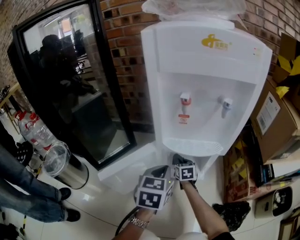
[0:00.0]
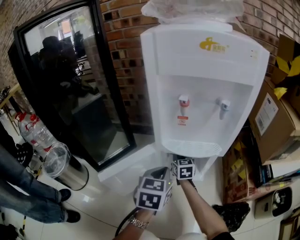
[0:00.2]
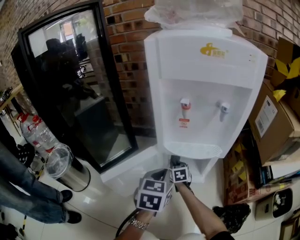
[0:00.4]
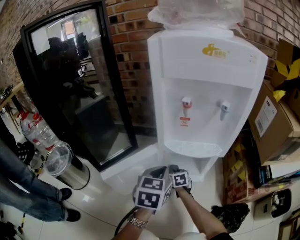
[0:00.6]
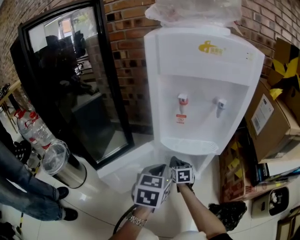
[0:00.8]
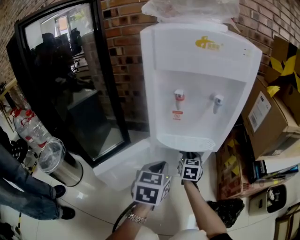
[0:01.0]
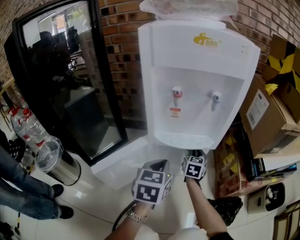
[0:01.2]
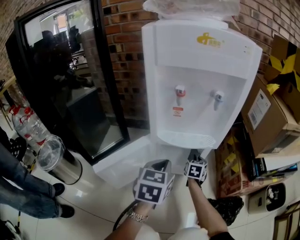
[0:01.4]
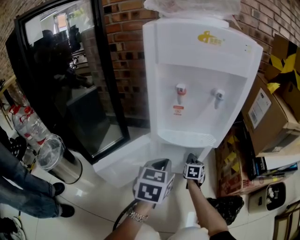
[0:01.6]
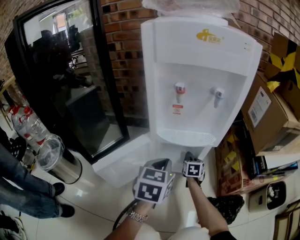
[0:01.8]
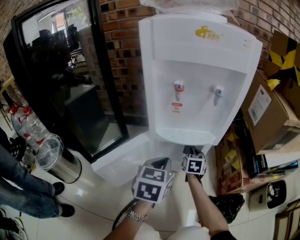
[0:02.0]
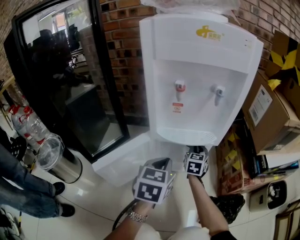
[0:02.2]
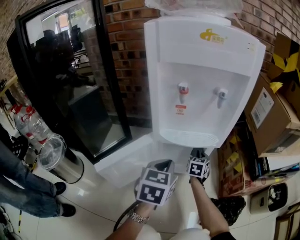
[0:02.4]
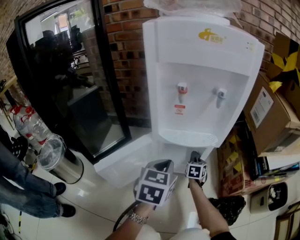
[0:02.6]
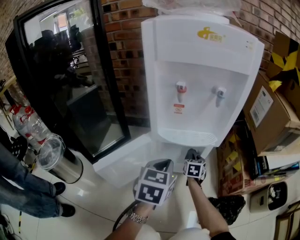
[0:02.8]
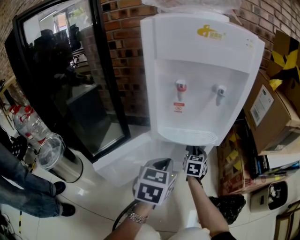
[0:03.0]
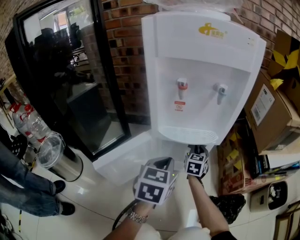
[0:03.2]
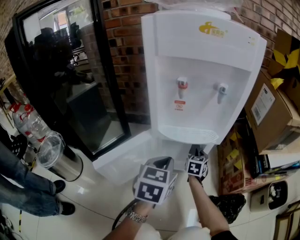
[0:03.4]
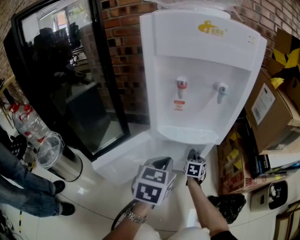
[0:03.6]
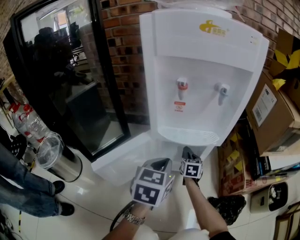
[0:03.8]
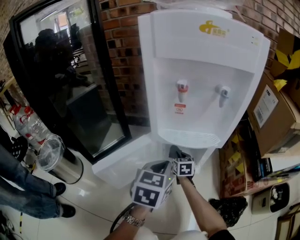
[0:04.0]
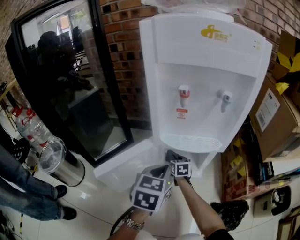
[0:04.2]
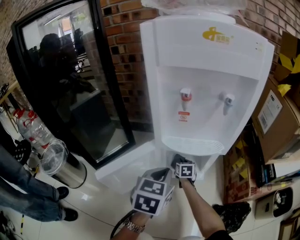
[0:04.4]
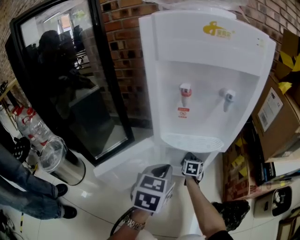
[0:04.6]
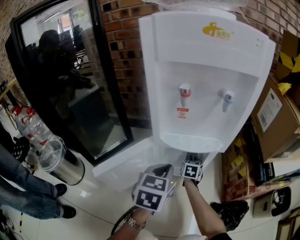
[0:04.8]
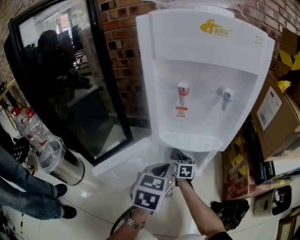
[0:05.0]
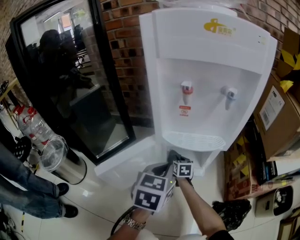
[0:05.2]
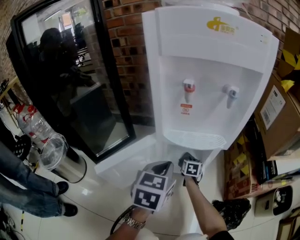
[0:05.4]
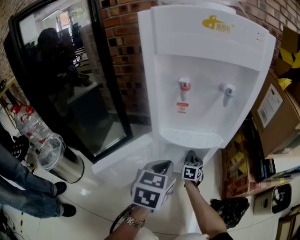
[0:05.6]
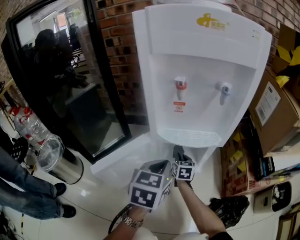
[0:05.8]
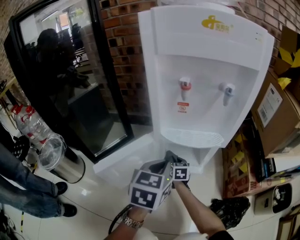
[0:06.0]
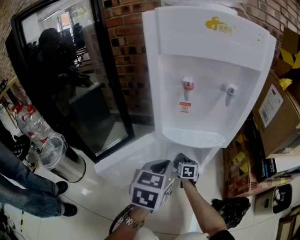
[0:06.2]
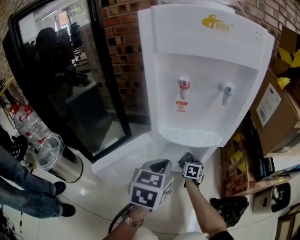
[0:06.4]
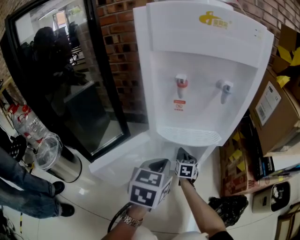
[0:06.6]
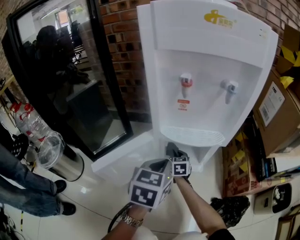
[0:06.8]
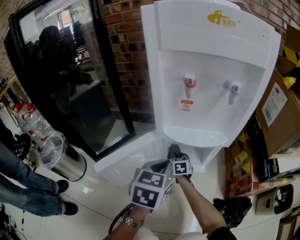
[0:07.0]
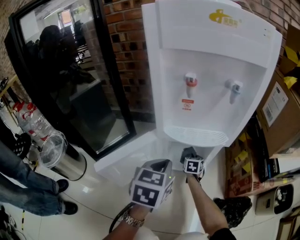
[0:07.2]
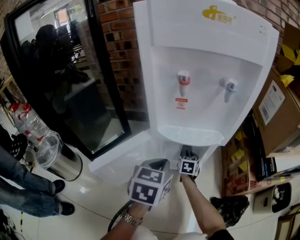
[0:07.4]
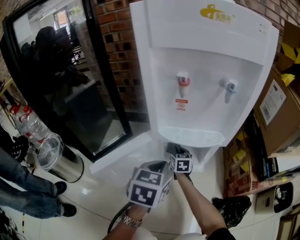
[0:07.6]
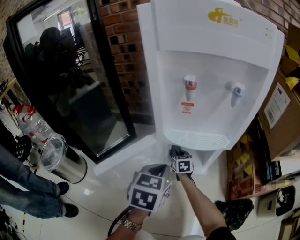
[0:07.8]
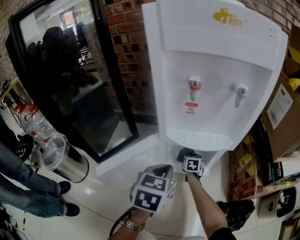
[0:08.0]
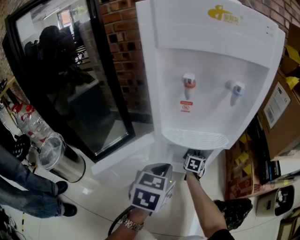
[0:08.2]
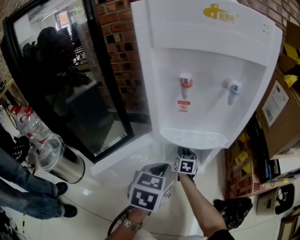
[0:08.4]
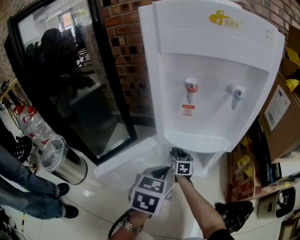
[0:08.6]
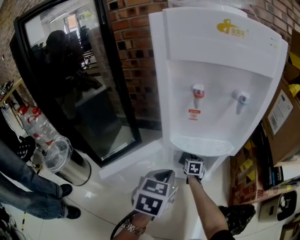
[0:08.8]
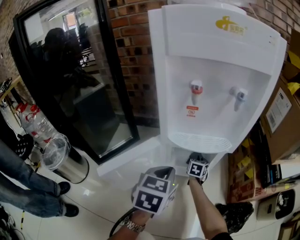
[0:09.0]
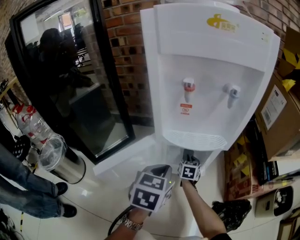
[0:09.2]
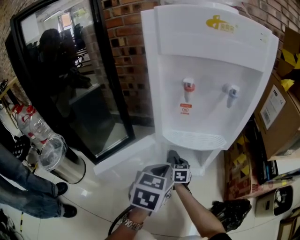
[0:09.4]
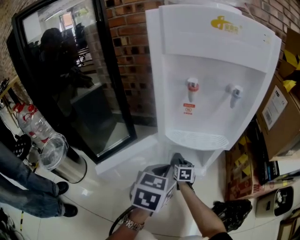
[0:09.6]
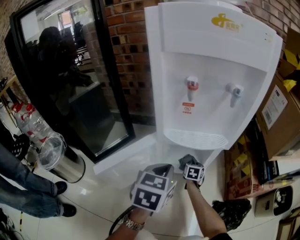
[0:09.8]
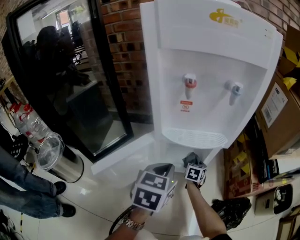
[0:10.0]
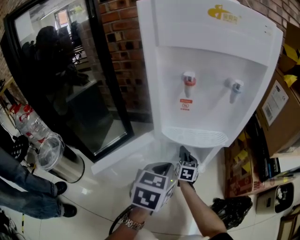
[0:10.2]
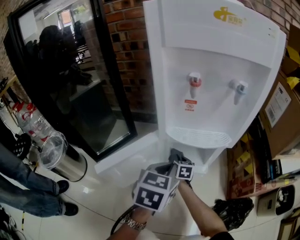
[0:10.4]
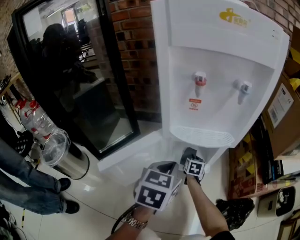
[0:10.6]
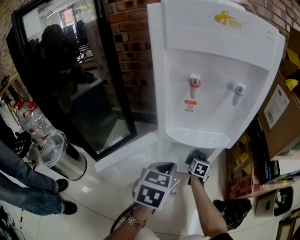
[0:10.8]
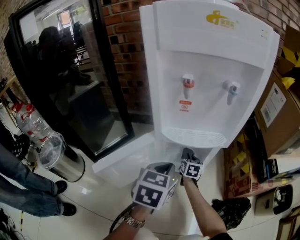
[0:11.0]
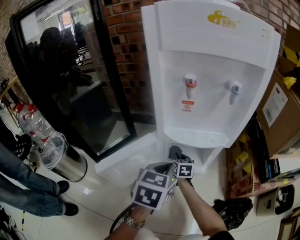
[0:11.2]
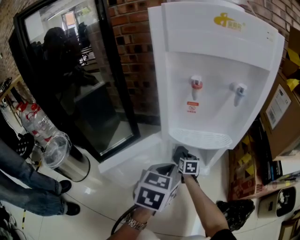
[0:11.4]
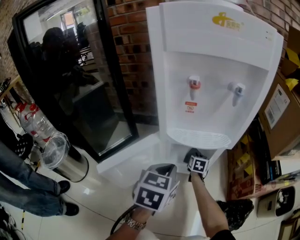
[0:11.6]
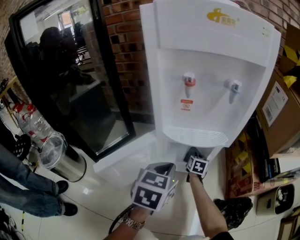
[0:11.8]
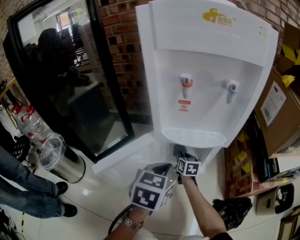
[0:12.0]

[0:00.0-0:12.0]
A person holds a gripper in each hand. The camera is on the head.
0:00.0 to 0:01.6: The right gripper shifts about 10 cm to the right, and changes its angle by approximately 20 degrees.
0:01.6 to 0:03.0: The right gripper swings up and down, some 10 cm each way, with 2 reversals.
0:03.0 to 0:04.4: The right gripper moves downward and to the left, roughly 15 cm, and changes its angle by approximately 20 degrees.
0:04.4 to 0:06.0: The right gripper goes left and right, some 10 cm each way, reversing 3 times.
0:06.0 to 0:07.6: The right gripper swings left and right, approximately 15 cm each way, with 3 reversals.
0:07.6 to 0:09.0: The right gripper goes left and right, approximately 15 cm each way, reversing 2 times, and rotates approximately 20 degrees.
0:09.0 to 0:10.4: The right gripper goes left and right, some 15 cm each way, reversing 2 times, and changes its angle by some 20 degrees.
0:10.4 to 0:12.0: The right gripper swings left and right, approximately 15 cm each way, with 3 reversals.

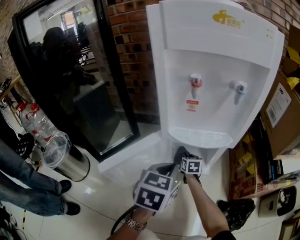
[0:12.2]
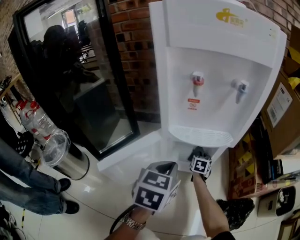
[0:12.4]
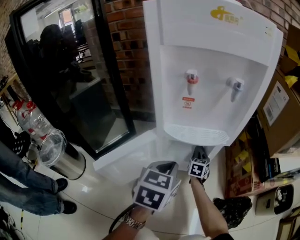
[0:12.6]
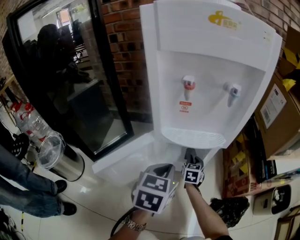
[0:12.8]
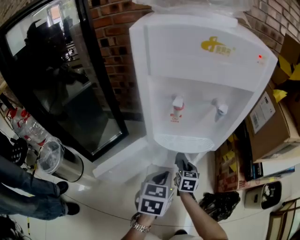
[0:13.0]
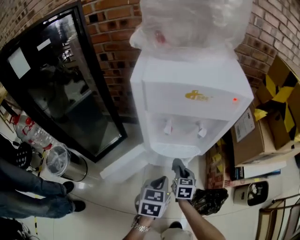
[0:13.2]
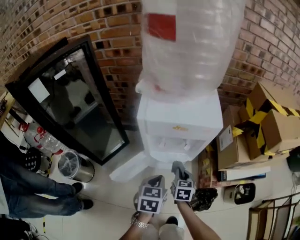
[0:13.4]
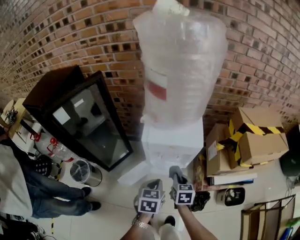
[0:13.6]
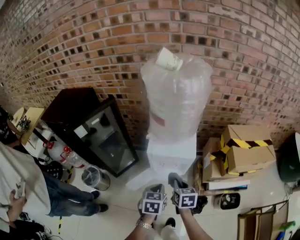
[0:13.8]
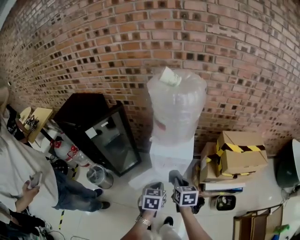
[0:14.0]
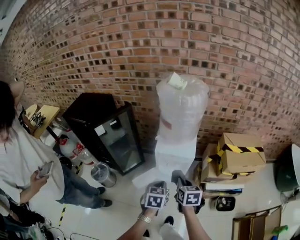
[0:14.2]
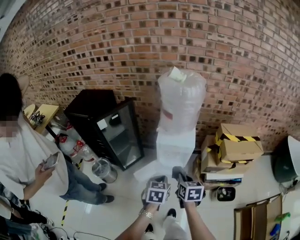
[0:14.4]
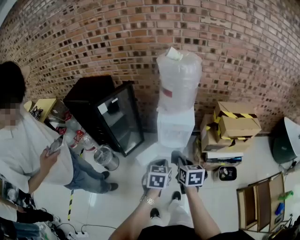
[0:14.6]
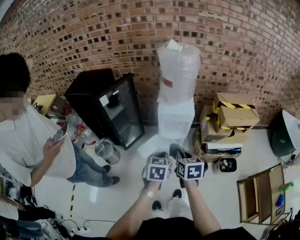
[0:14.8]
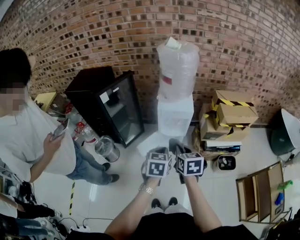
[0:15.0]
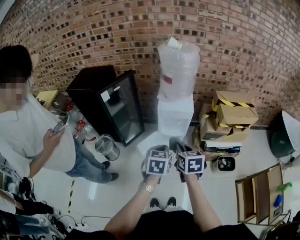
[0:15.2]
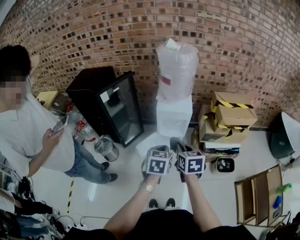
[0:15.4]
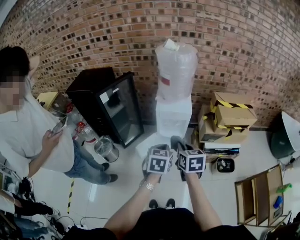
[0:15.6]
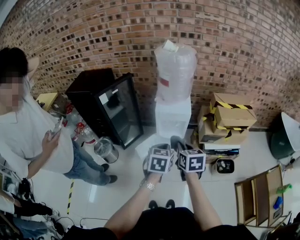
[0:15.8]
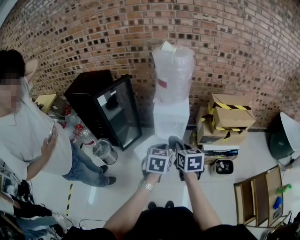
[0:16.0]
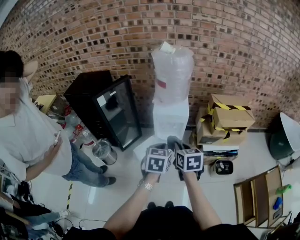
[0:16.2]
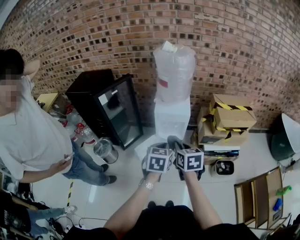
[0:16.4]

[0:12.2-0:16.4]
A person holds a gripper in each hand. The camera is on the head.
0:12.2 to 0:13.6: The right gripper is displaced upward by about 60 cm, while the left gripper heads upward, covering about 35 cm.
0:13.6 to 0:15.0: Both grippers move upward and backward, about 40 cm.
0:15.0 to 0:16.4: The left gripper ends up roughly 5 cm from where it was.

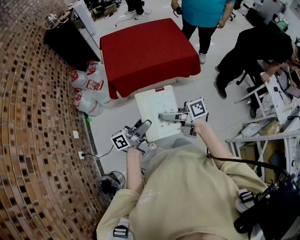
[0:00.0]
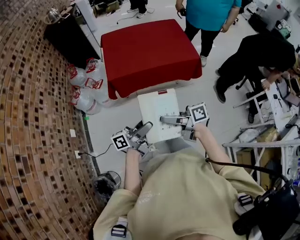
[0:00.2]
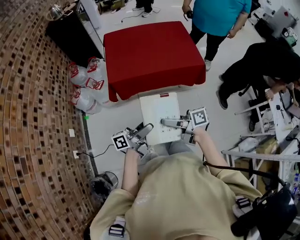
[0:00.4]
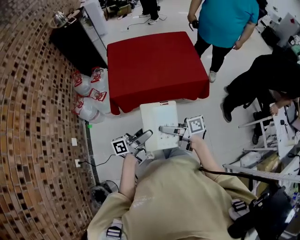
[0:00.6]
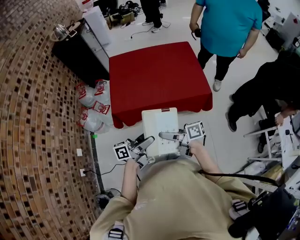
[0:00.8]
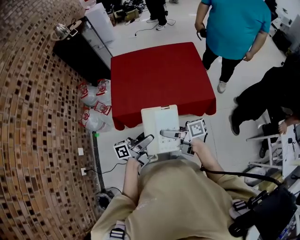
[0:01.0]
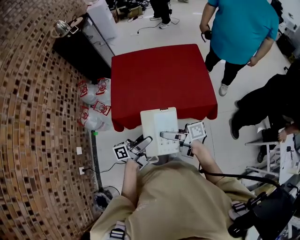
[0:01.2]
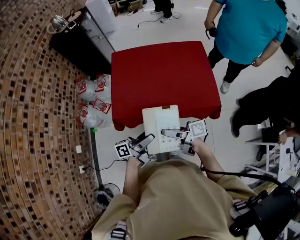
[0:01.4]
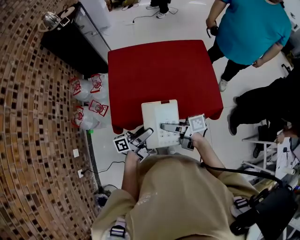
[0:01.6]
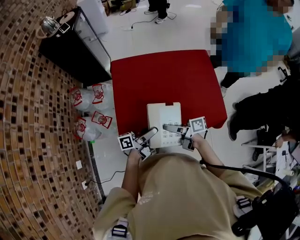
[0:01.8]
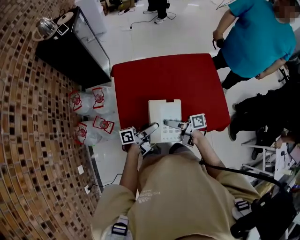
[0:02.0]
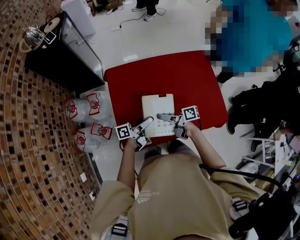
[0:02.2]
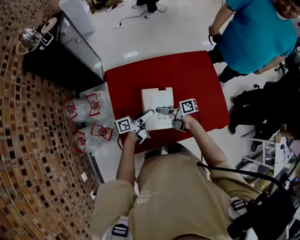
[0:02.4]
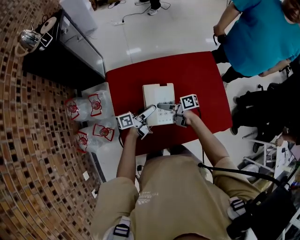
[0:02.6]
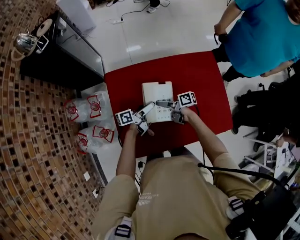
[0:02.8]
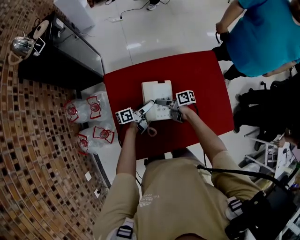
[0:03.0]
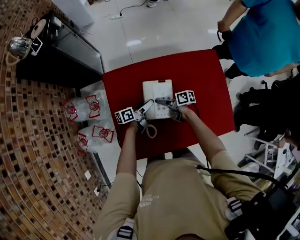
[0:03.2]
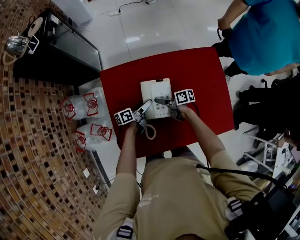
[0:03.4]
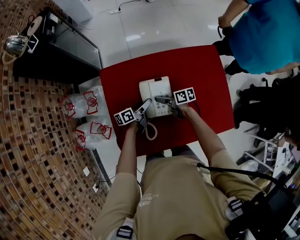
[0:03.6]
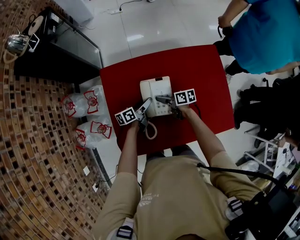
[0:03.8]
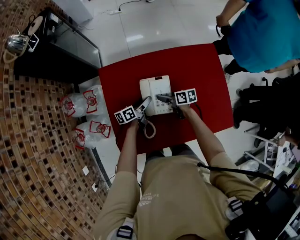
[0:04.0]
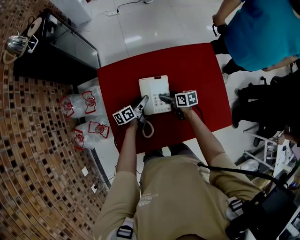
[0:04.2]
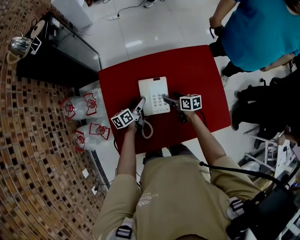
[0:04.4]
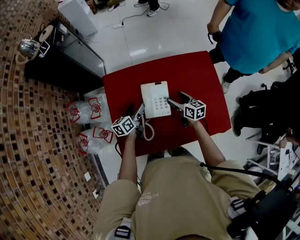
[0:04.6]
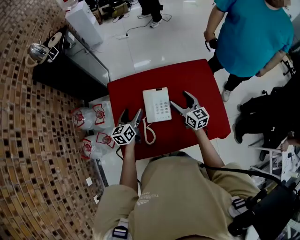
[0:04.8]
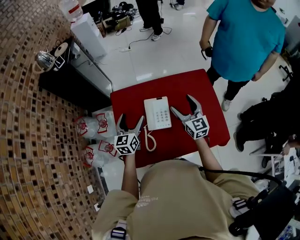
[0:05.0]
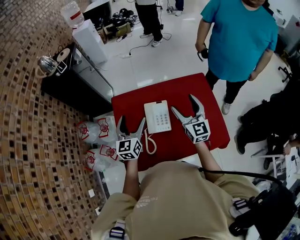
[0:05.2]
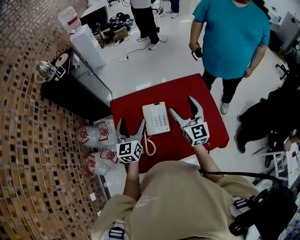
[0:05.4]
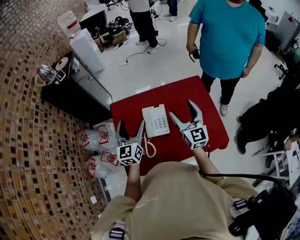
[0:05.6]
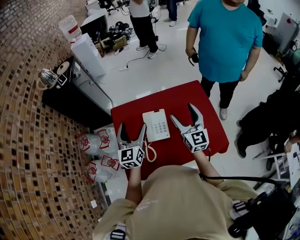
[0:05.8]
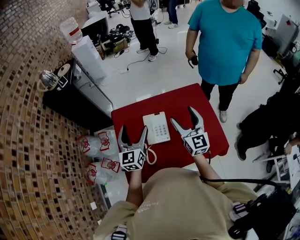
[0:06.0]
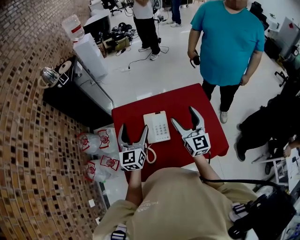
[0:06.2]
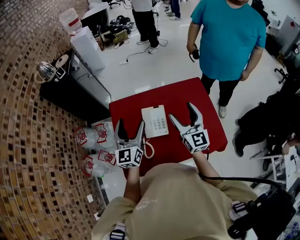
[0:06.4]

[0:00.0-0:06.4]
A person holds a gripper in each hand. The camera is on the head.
0:00.0 to 0:01.6: The pair of grippers is taken approximately 50 cm.
0:01.6 to 0:03.2: The pair of grippers is taken approximately 50 cm. The left gripper tilts its fingers about 30 degrees downward, while the right gripper turns by approximately 40 degrees.
0:03.2 to 0:04.8: The left gripper is displaced upward and backward by approximately 20 cm, and changes its angle by approximately 50 degrees; the right gripper shifts some 30 cm upward, to the right and backward, and twists roughly 60 degrees counterclockwise, seen from behind.
0:04.8 to 0:06.4: The grippers both shift upward and backward by about 25 cm. The left gripper changes its angle by some 40 degrees. Meanwhile the right gripper rotates about 30 degrees.

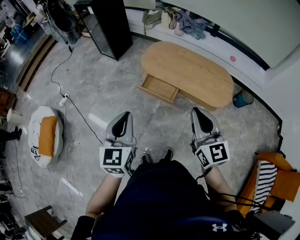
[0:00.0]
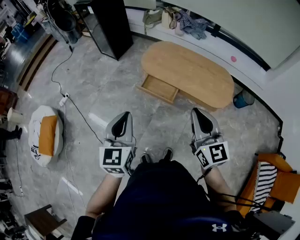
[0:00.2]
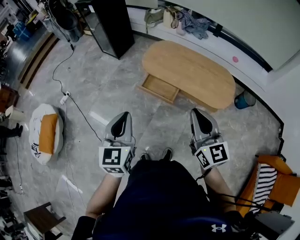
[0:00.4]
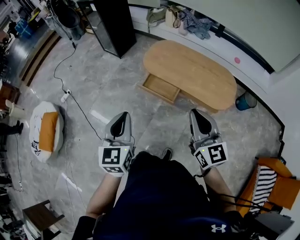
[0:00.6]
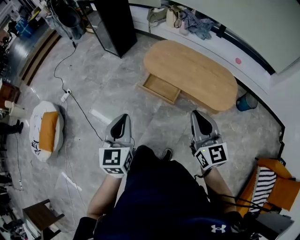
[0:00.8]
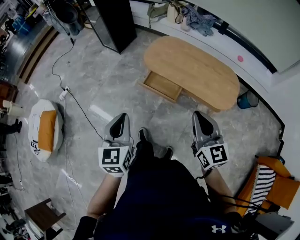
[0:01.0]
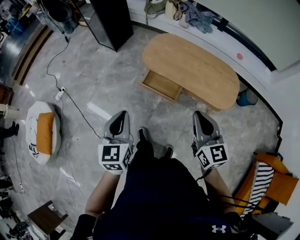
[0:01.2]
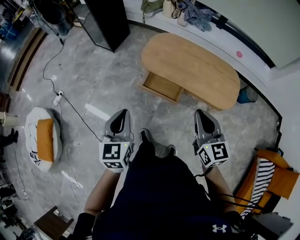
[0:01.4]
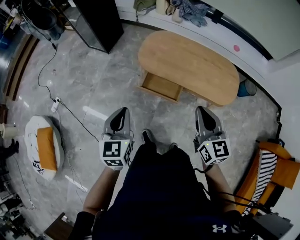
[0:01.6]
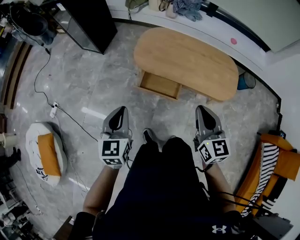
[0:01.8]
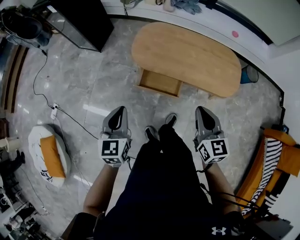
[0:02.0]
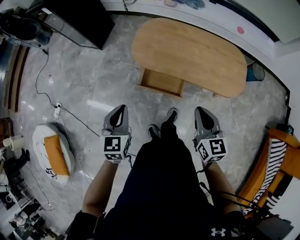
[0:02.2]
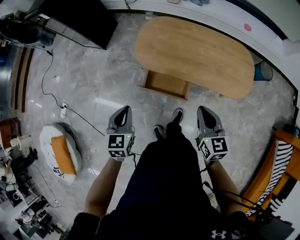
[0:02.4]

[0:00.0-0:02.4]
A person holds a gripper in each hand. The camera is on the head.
0:00.0 to 0:01.2: The grippers both shift forward and downward by roughly 10 cm.
0:01.2 to 0:02.4: Both grippers move forward and downward, some 25 cm. The right gripper turns by about 20 degrees. Meanwhile the left gripper turns by some 20 degrees.
